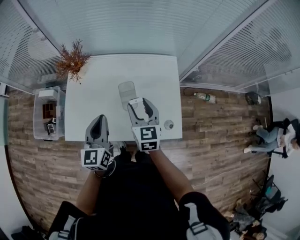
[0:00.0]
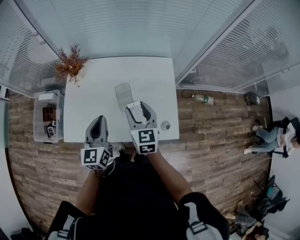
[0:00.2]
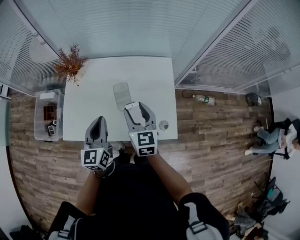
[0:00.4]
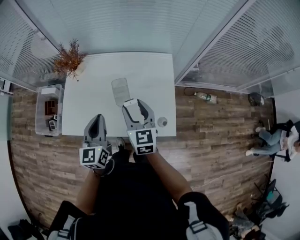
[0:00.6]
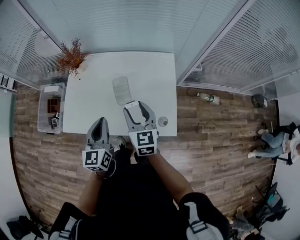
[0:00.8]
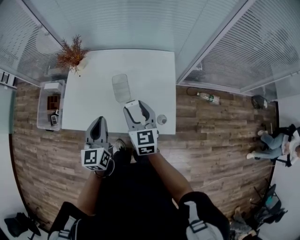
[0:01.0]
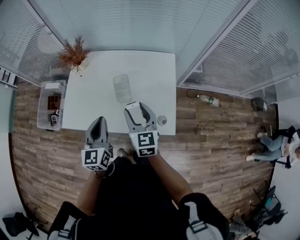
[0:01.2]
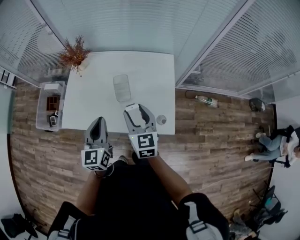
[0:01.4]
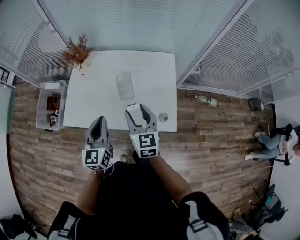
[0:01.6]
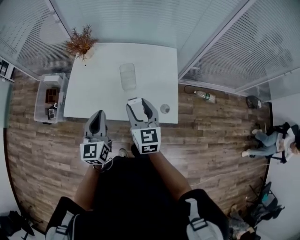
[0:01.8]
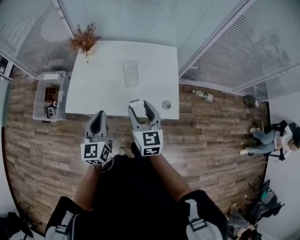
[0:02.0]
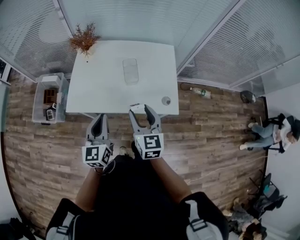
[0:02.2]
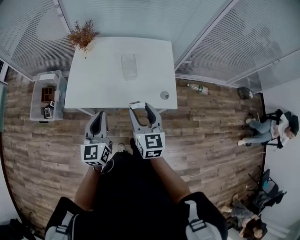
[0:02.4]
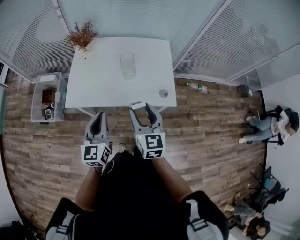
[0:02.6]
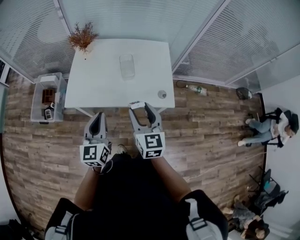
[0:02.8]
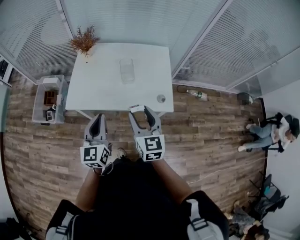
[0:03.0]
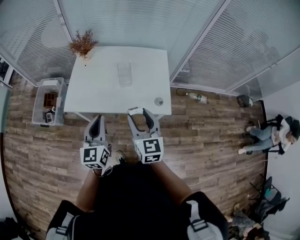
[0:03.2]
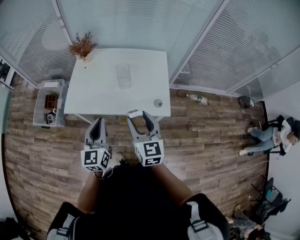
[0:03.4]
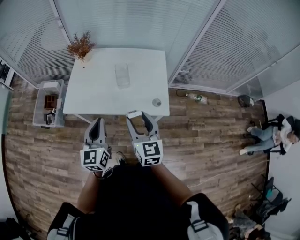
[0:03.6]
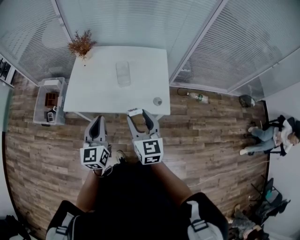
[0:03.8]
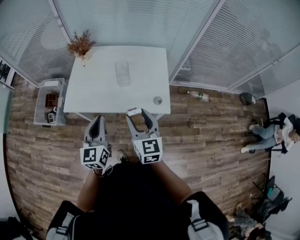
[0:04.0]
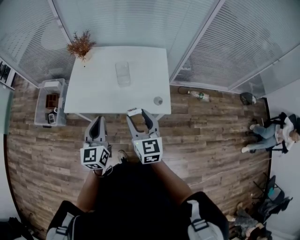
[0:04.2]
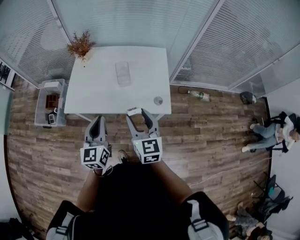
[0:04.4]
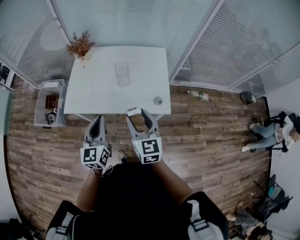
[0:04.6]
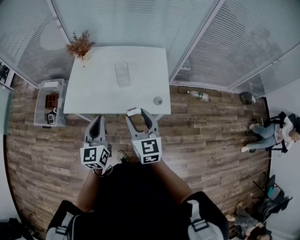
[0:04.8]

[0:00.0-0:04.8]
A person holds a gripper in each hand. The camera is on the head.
0:00.0 to 0:01.6: Both grippers move backward, about 10 cm.
0:01.6 to 0:03.2: The two grippers go approximately 15 cm backward.
0:03.2 to 0:04.8: The grippers make only small movements.

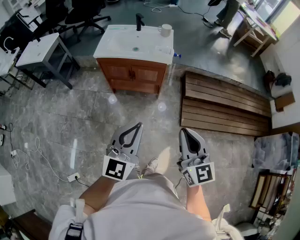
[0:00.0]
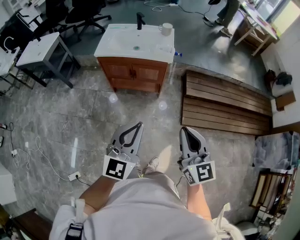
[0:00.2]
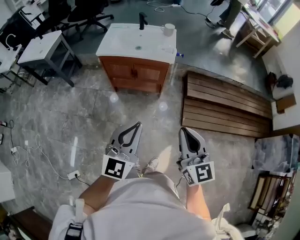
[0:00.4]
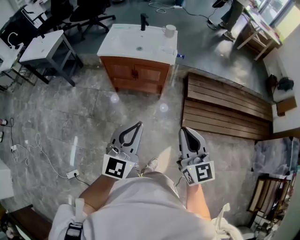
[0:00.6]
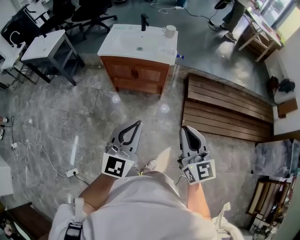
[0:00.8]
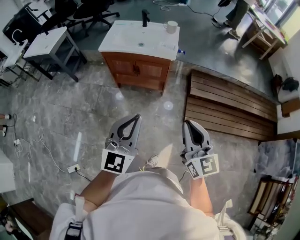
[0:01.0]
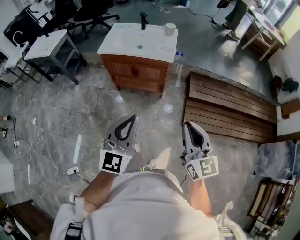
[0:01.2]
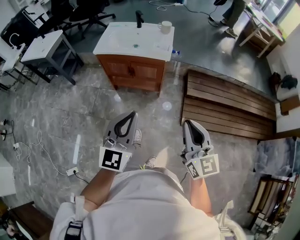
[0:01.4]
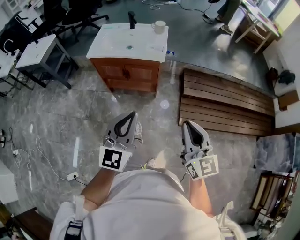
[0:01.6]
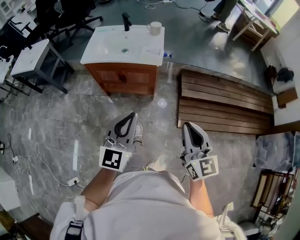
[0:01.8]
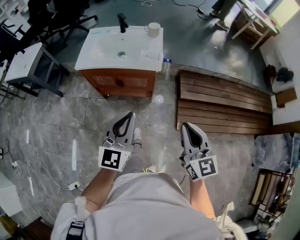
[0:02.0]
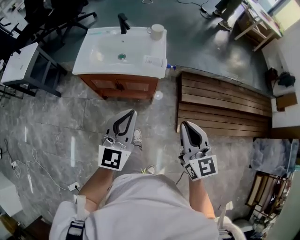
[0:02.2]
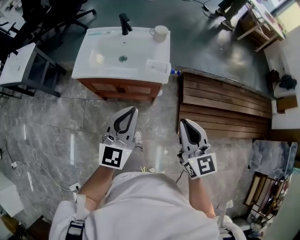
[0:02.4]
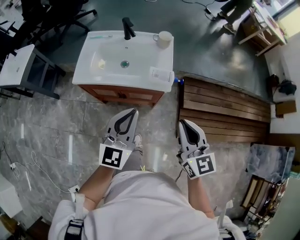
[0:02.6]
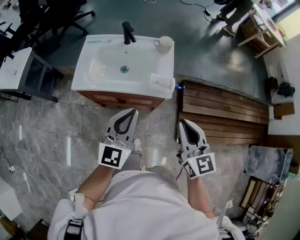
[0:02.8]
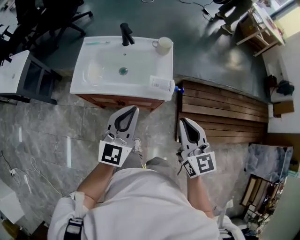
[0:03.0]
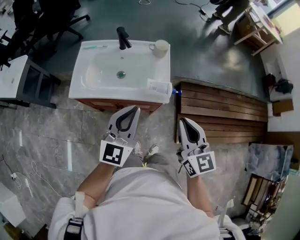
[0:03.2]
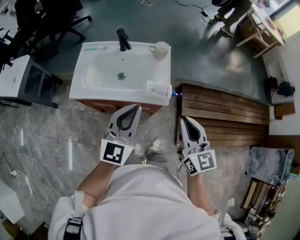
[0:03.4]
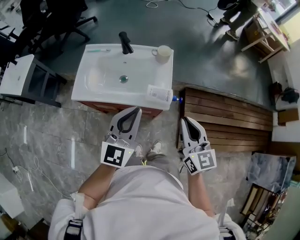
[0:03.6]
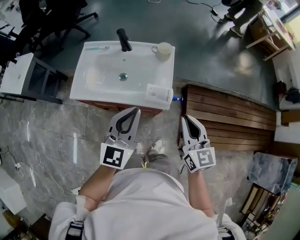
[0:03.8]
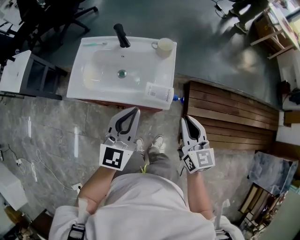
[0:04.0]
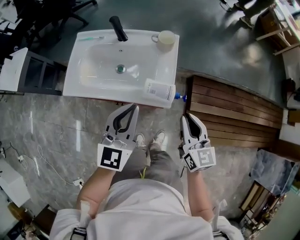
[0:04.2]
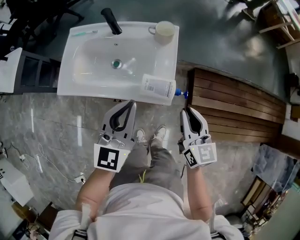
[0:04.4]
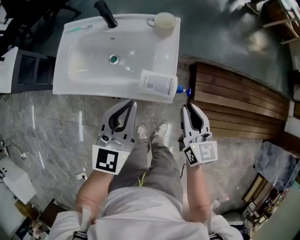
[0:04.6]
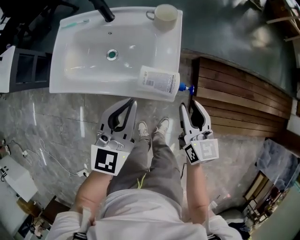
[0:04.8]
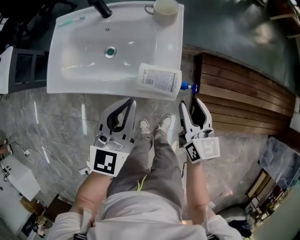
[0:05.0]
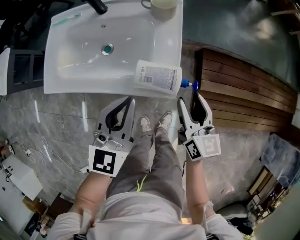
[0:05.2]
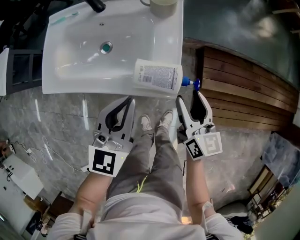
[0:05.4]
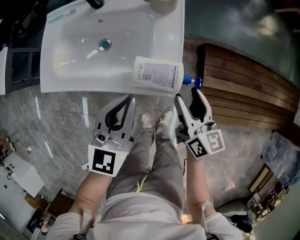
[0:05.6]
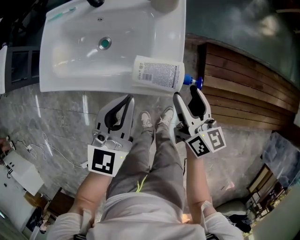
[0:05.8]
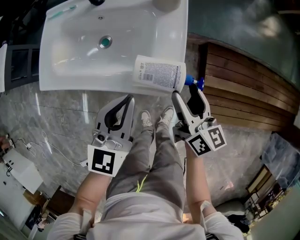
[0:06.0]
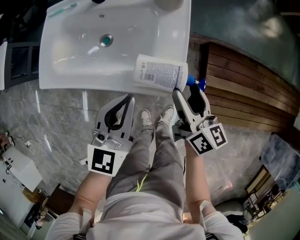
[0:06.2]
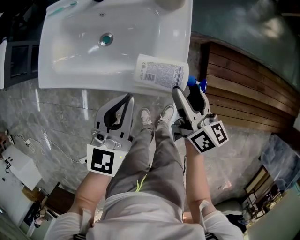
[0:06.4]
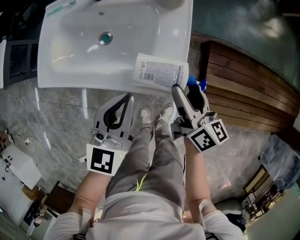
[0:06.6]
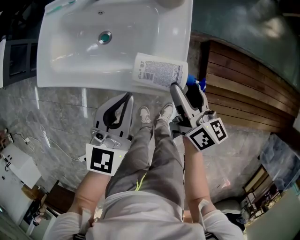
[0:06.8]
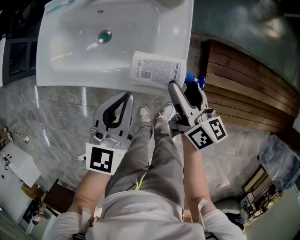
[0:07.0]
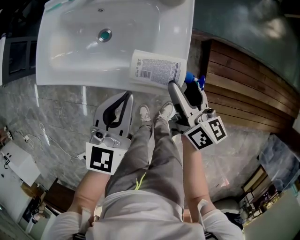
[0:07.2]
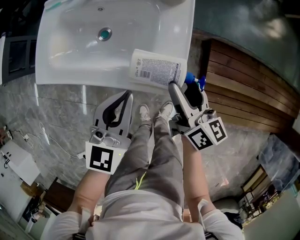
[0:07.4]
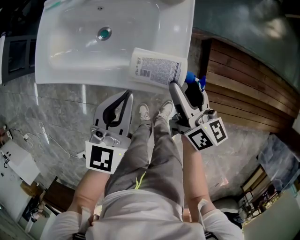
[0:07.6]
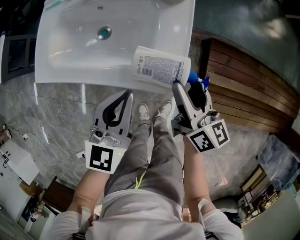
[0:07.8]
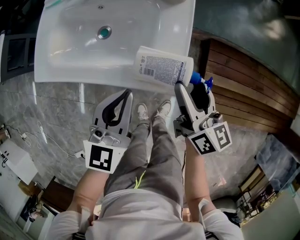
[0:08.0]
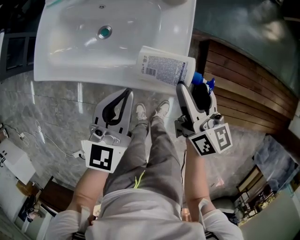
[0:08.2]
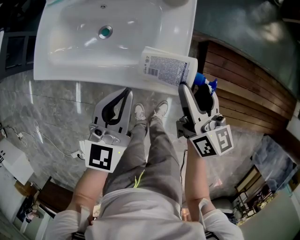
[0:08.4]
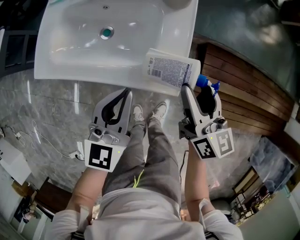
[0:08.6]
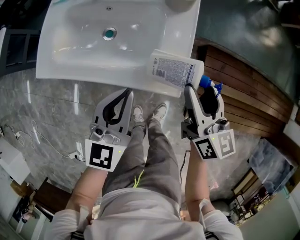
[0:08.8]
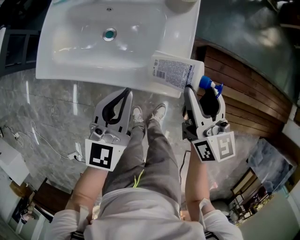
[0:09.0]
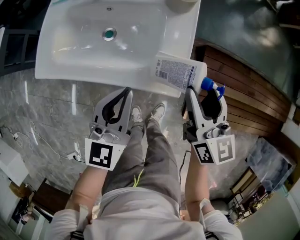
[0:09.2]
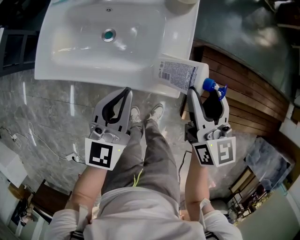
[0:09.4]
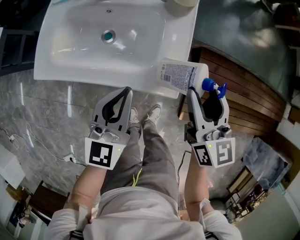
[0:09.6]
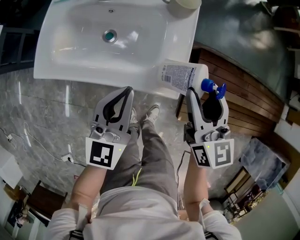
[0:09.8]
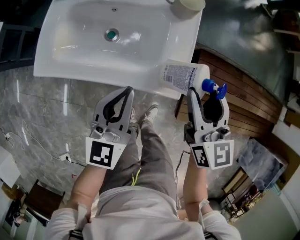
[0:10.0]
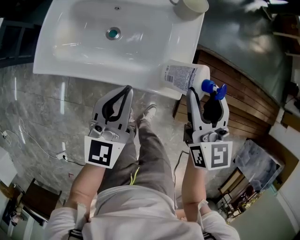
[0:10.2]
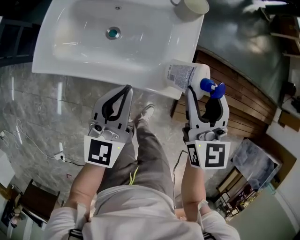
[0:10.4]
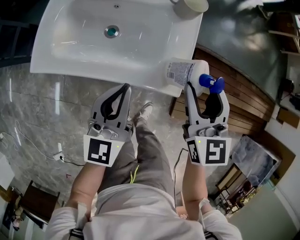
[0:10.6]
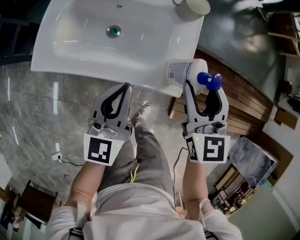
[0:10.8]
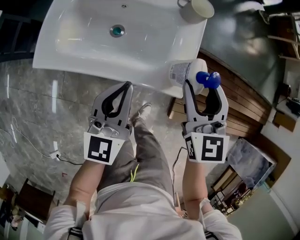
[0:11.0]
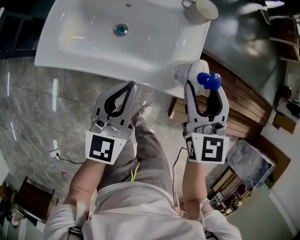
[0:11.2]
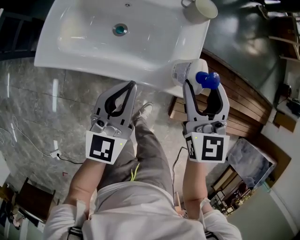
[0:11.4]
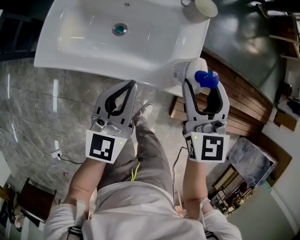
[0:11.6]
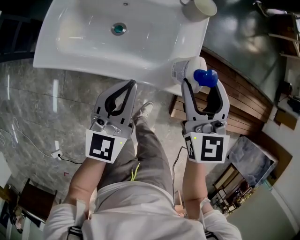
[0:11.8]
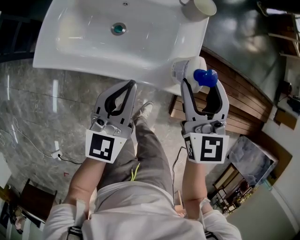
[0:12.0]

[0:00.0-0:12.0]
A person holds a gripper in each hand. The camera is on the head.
0:00.0 to 0:01.6: The right gripper is displaced to the right by about 10 cm. Meanwhile the left gripper shifts roughly 10 cm to the right and forward.
0:01.6 to 0:03.0: Both grippers are carried forward, approximately 50 cm.
0:03.0 to 0:04.4: The left gripper shifts some 20 cm forward, downward and to the right. The right gripper moves downward, forward and to the right, some 25 cm.
0:04.4 to 0:06.0: The grippers both shift downward by about 15 cm. The right gripper changes its angle by approximately 30 degrees, and opens its fingers.
0:06.0 to 0:07.6: The grippers move only a little.
0:07.6 to 0:09.0: The right gripper heads upward, covering some 10 cm, and changes its angle by some 20 degrees. The left gripper moves some 5 cm.
0:09.0 to 0:10.4: The right gripper changes place by roughly 5 cm, and turns by roughly 20 degrees.
0:10.4 to 0:12.0: The right gripper heads to the left, covering roughly 5 cm.

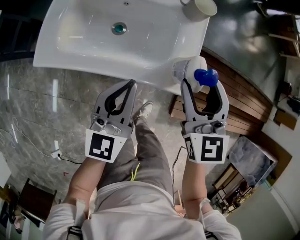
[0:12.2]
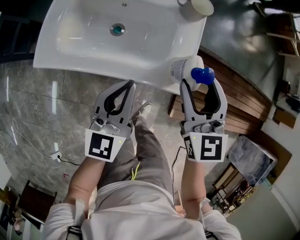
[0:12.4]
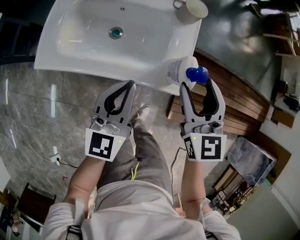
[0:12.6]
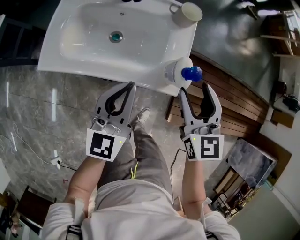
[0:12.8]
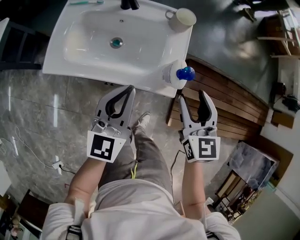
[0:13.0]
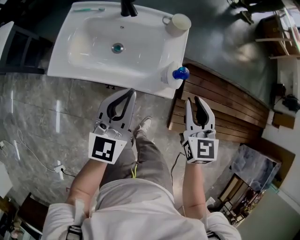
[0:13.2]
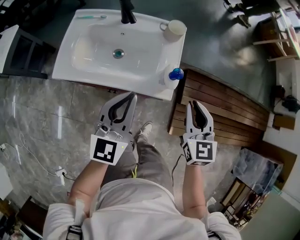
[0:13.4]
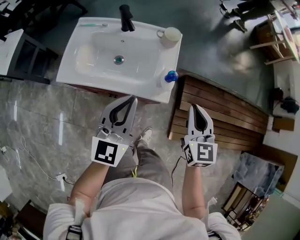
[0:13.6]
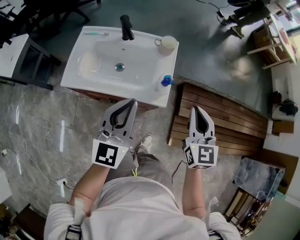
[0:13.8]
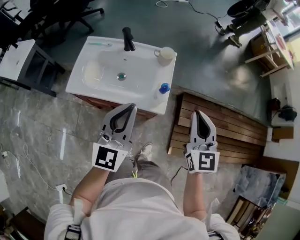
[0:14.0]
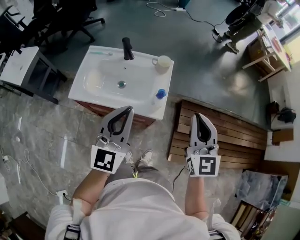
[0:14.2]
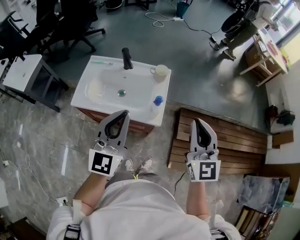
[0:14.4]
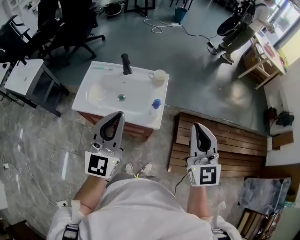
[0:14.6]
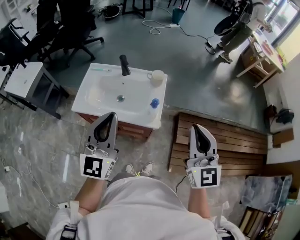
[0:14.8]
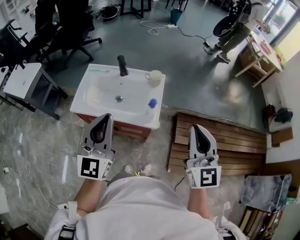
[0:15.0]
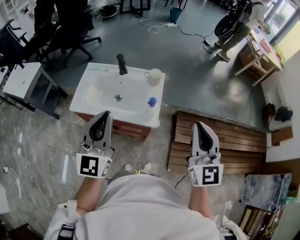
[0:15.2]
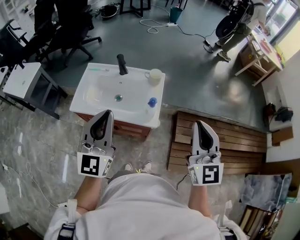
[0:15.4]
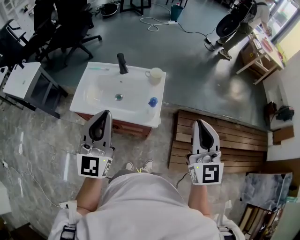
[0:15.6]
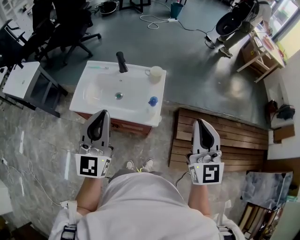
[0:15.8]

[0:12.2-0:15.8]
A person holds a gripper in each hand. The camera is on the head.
0:12.2 to 0:14.0: The right gripper heads upward, backward and to the right, covering about 25 cm, and closes up, while the left gripper moves upward, roughly 25 cm.
0:14.0 to 0:15.8: The right gripper shifts about 15 cm upward and backward; the left gripper moves upward, roughly 10 cm.

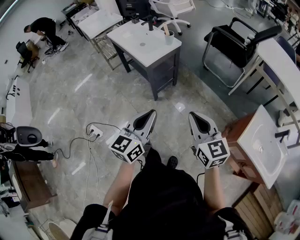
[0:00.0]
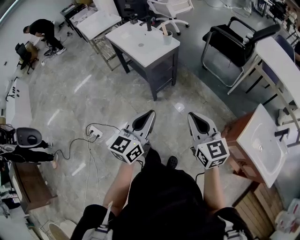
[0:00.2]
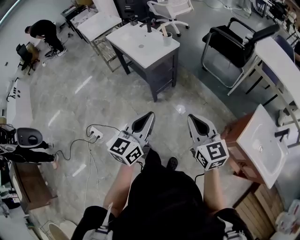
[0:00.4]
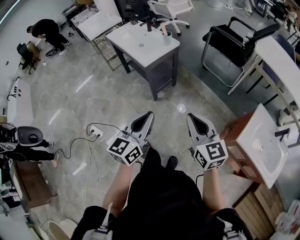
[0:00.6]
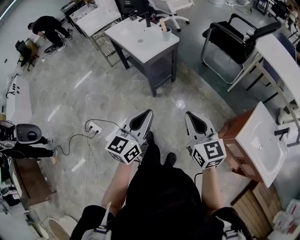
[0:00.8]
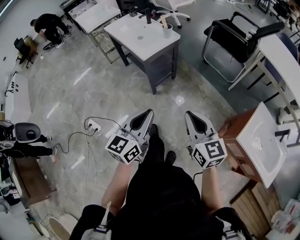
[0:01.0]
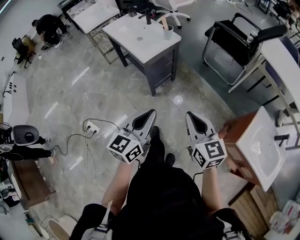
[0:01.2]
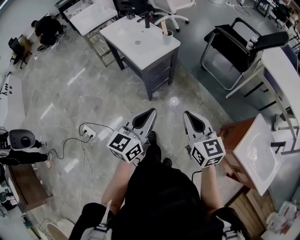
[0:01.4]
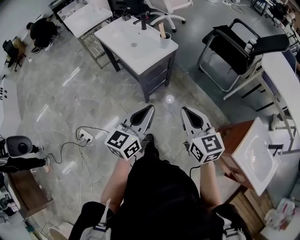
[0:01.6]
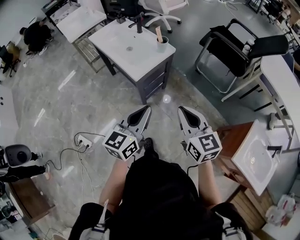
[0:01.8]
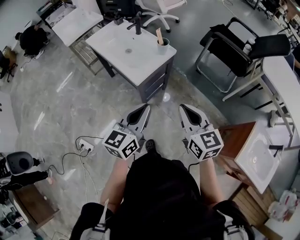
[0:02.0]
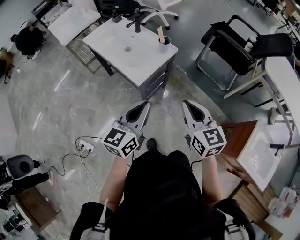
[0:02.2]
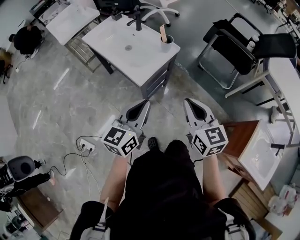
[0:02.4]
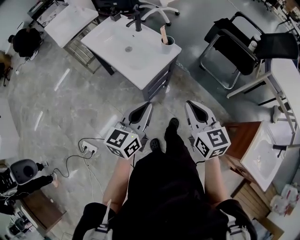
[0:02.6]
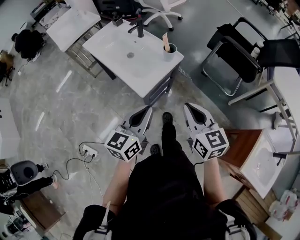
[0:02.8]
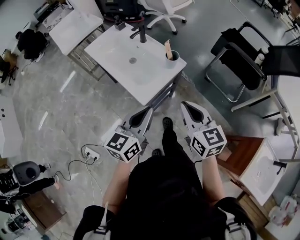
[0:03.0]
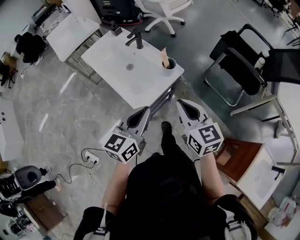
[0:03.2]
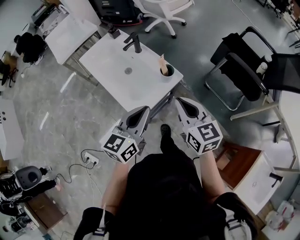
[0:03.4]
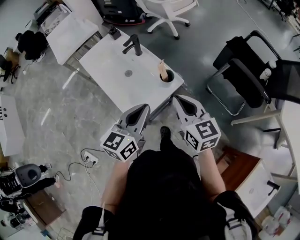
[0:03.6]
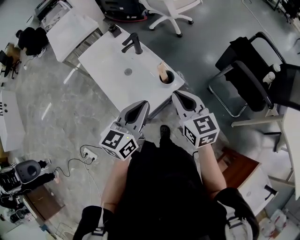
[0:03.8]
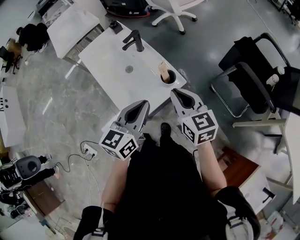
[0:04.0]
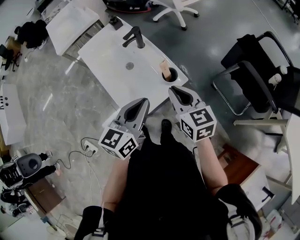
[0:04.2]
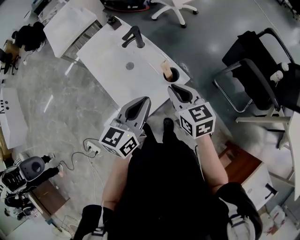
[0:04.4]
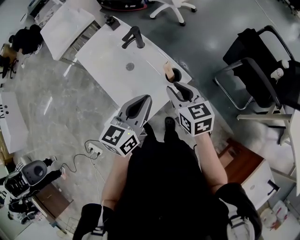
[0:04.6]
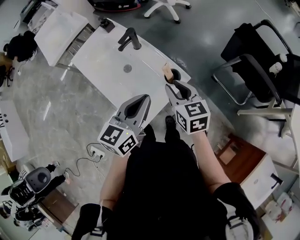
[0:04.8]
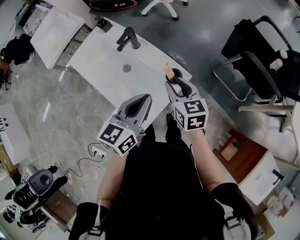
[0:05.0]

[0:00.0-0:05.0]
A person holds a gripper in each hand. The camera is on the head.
0:00.0 to 0:01.6: Both grippers move forward, some 15 cm.
0:01.6 to 0:03.4: The grippers both shift forward by roughly 35 cm.
0:03.4 to 0:05.0: The left gripper heads forward, covering about 15 cm, while the right gripper shifts about 20 cm forward and downward, and opens up.
